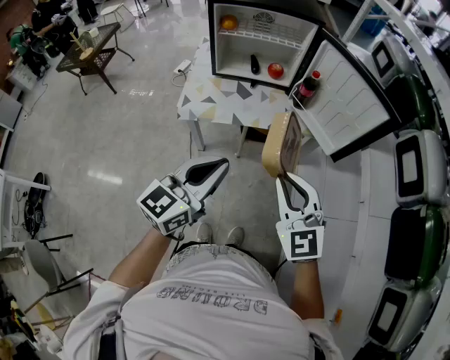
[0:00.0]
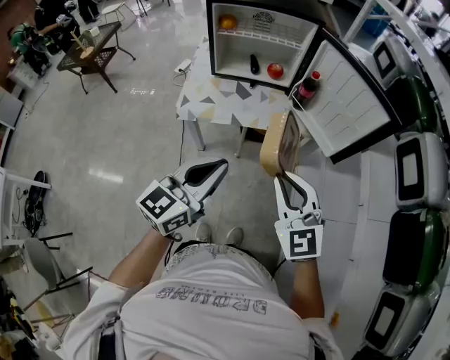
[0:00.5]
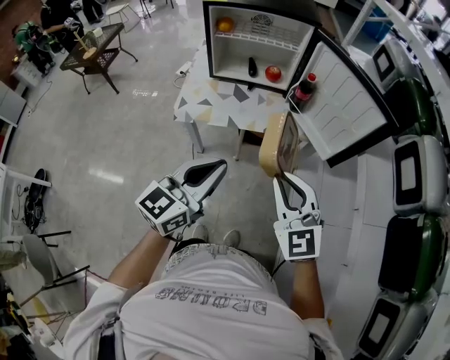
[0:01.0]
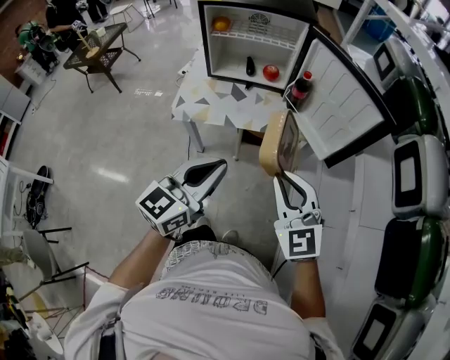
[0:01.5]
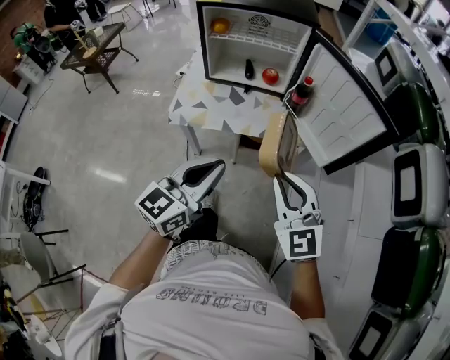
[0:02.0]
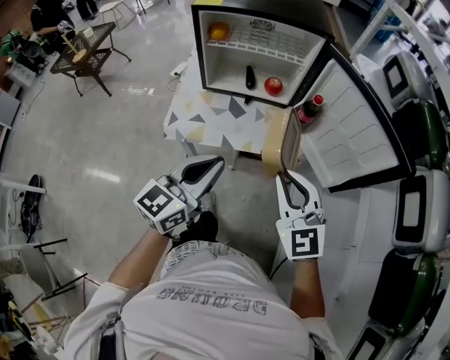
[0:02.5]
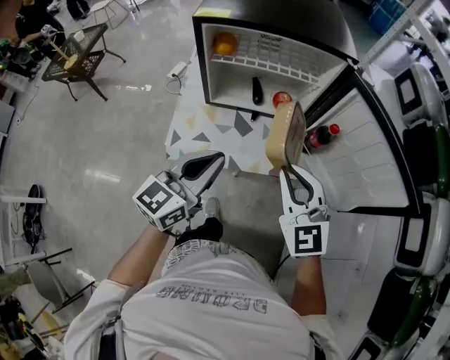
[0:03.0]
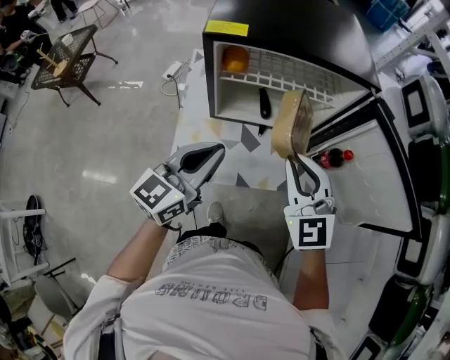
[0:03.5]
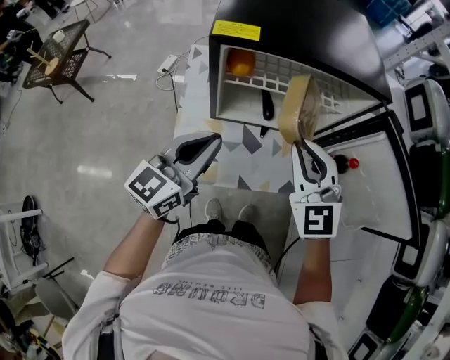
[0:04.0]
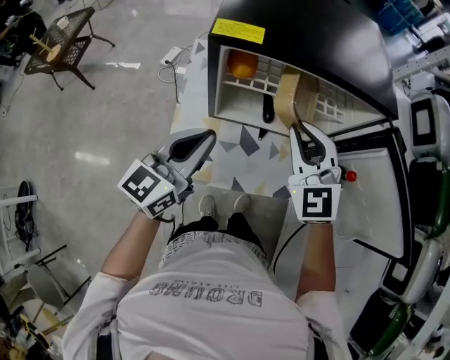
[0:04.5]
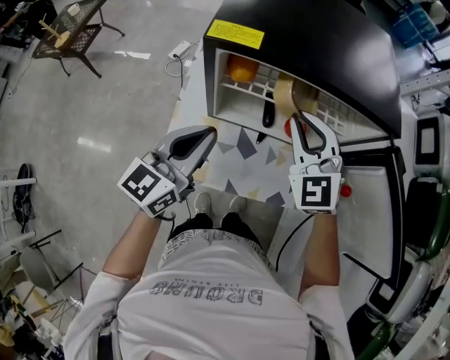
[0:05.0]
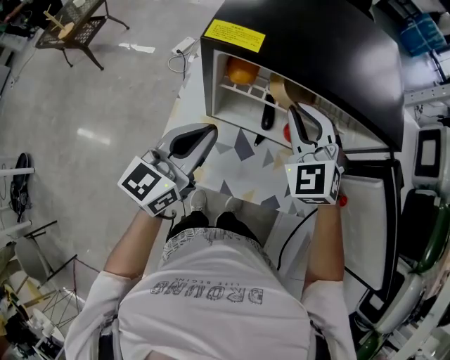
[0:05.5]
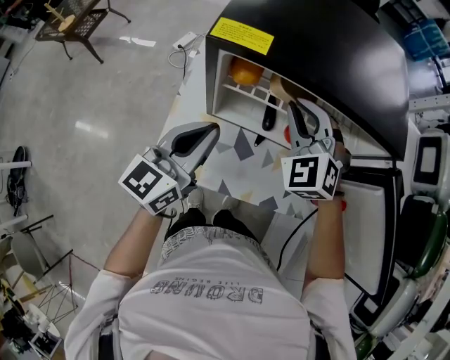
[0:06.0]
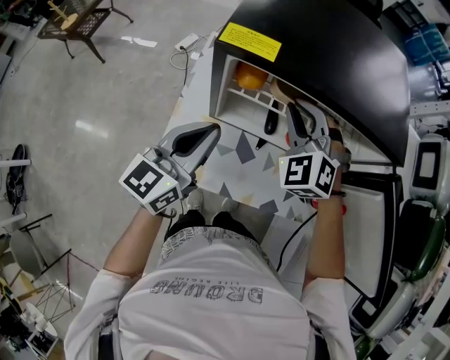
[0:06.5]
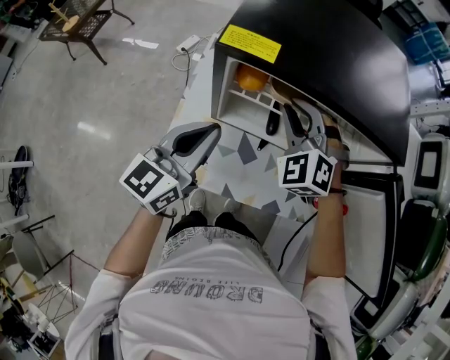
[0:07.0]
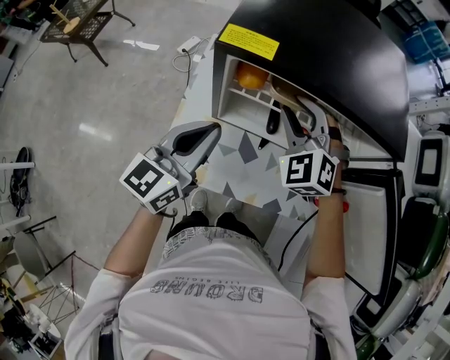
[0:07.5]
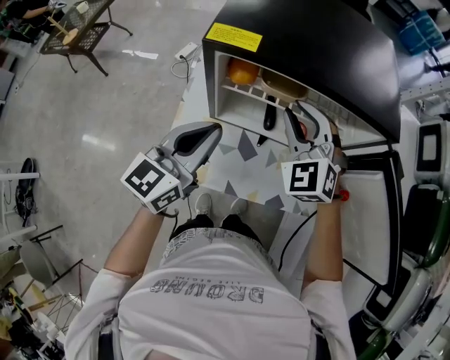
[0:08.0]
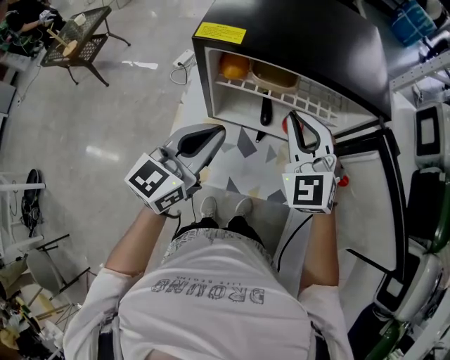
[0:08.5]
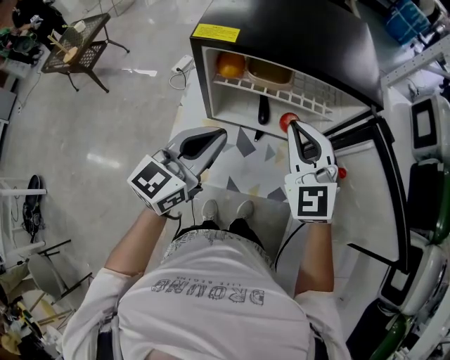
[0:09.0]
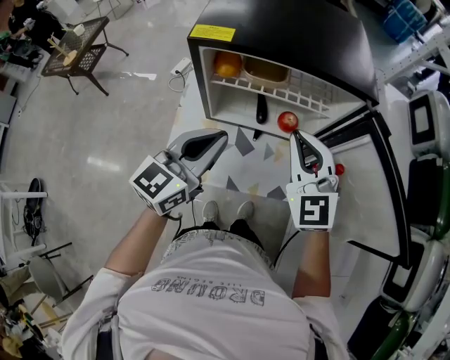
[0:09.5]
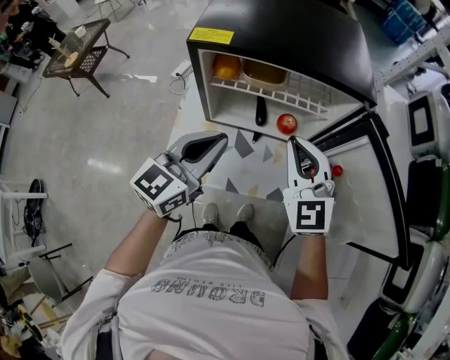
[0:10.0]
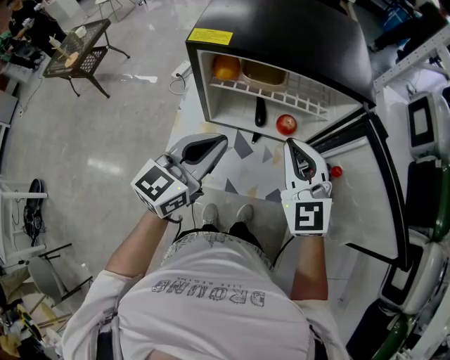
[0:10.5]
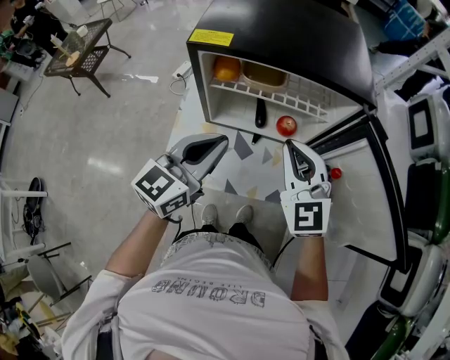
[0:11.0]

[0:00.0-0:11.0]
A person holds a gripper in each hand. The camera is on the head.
0:00.0 to 0:02.0: The right gripper heads forward, covering some 5 cm. The left gripper moves approximately 5 cm.
0:02.0 to 0:03.5: The grippers both shift forward and to the left by approximately 35 cm.
0:03.5 to 0:05.5: The right gripper heads forward, covering about 20 cm, and rotates about 20 degrees. The left gripper goes approximately 10 cm forward.
0:05.5 to 0:07.5: The right gripper opens its fingers.
0:07.5 to 0:09.0: The right gripper heads backward, to the right and upward, covering some 15 cm, swivels about 30 degrees, and closes up, while the left gripper moves to the right and backward, roughly 10 cm.
0:09.0 to 0:11.0: The grippers stay close to where they were, moving slightly.

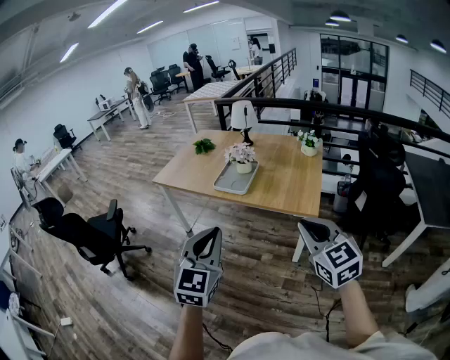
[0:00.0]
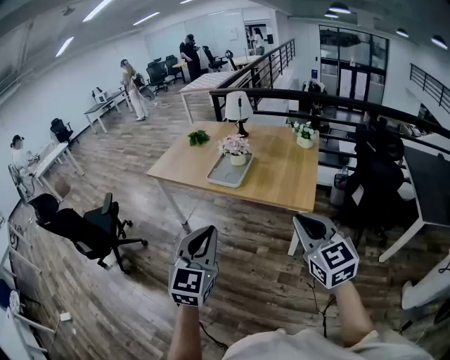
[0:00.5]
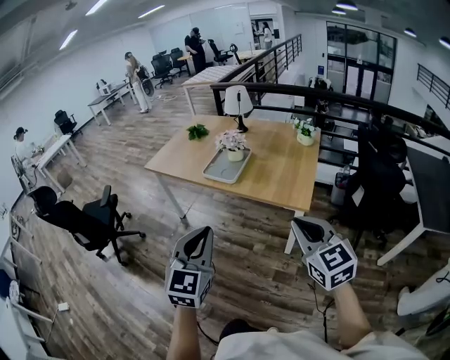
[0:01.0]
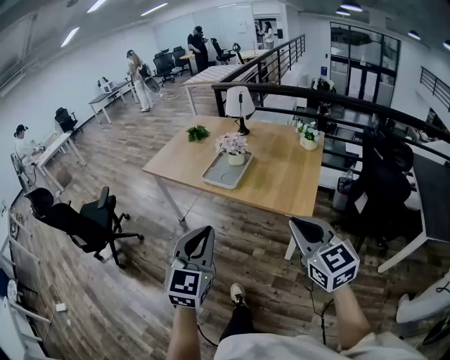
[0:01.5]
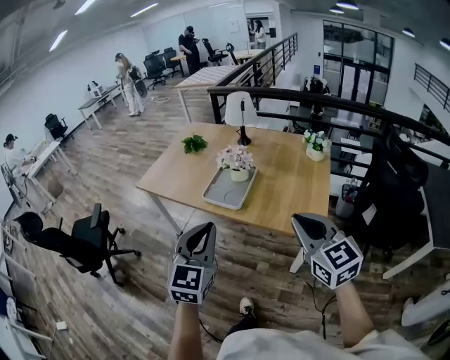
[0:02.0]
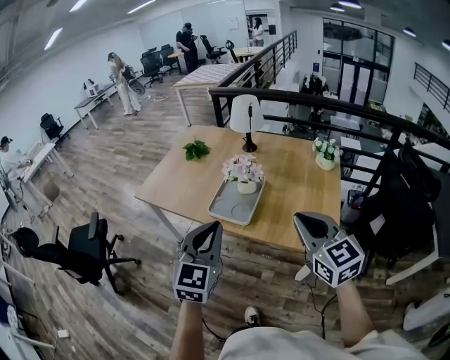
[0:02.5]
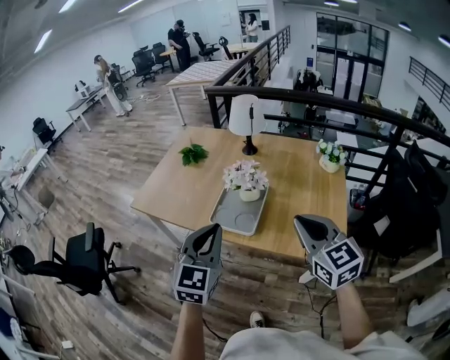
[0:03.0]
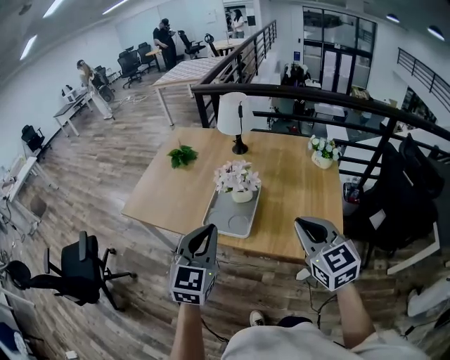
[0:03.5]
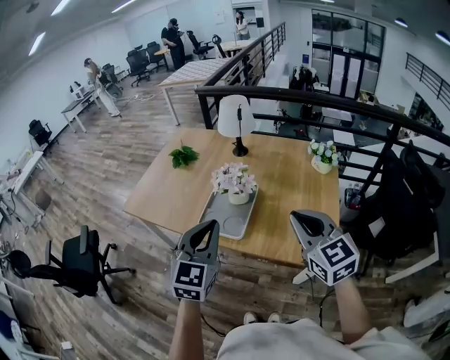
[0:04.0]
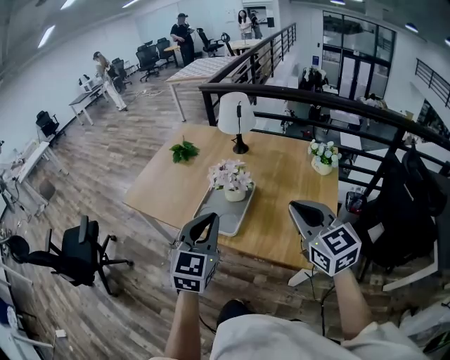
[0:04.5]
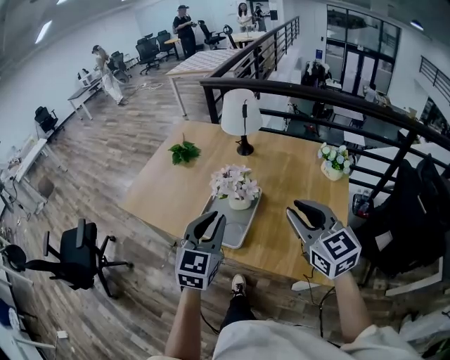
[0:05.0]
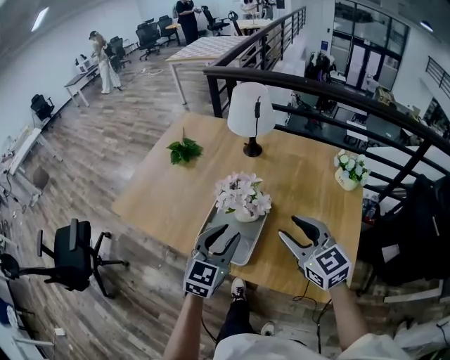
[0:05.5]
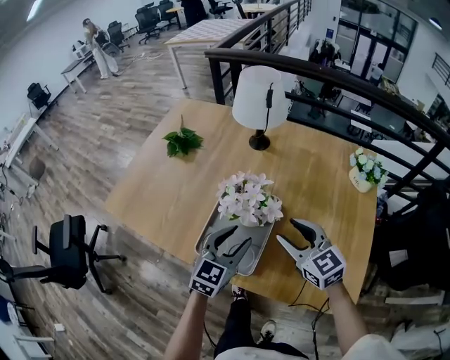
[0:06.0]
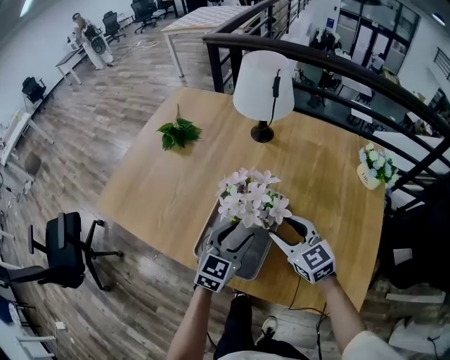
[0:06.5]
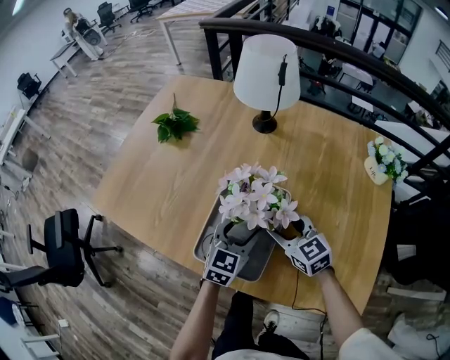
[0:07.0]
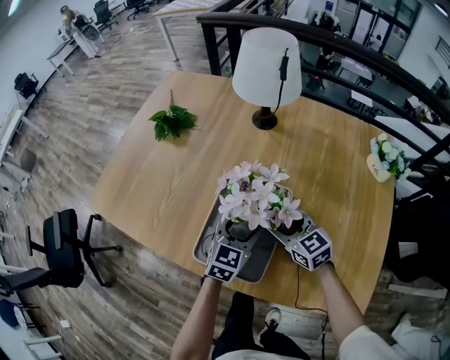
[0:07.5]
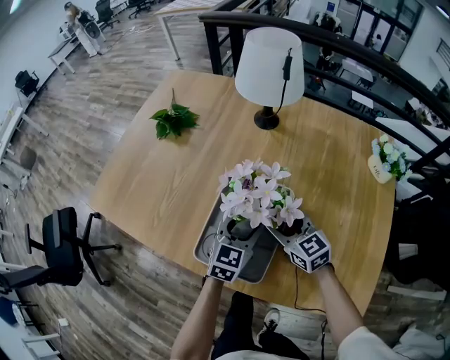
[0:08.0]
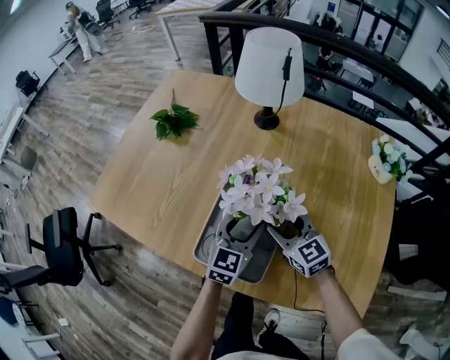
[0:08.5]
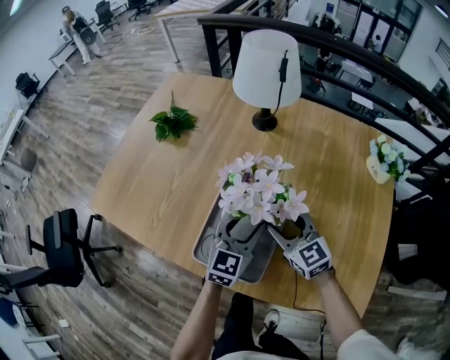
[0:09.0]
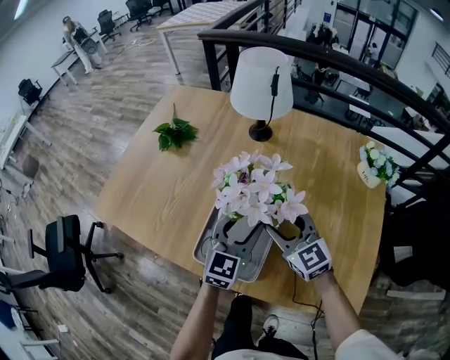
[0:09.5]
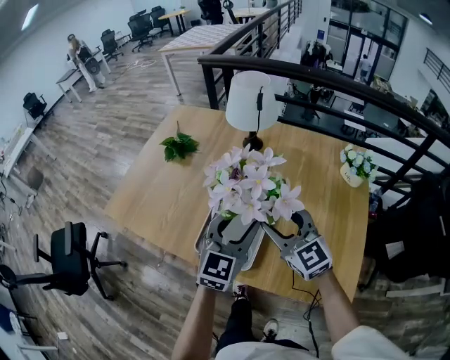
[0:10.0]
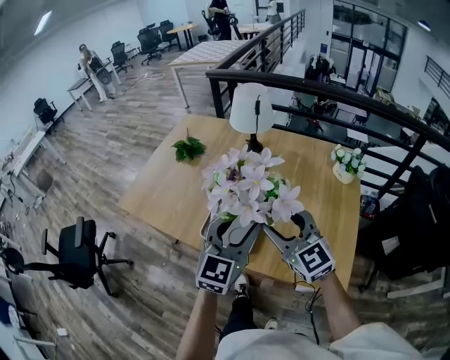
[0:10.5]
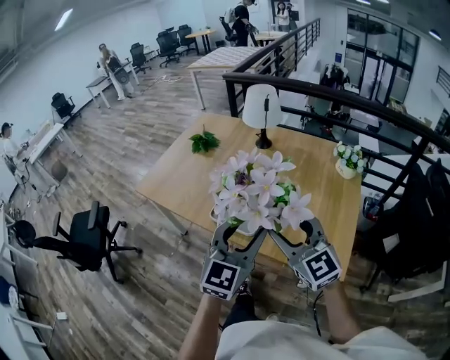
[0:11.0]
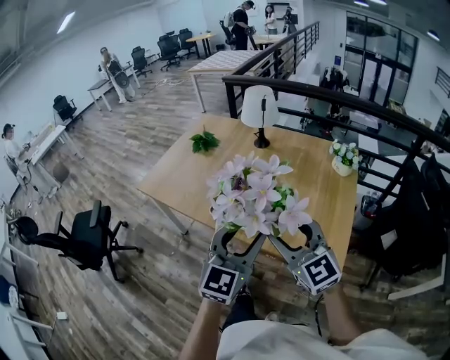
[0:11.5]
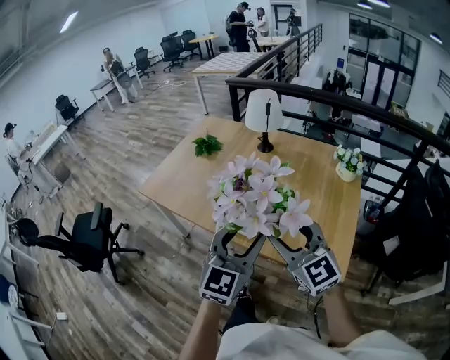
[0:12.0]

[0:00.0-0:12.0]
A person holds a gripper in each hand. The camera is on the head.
0:00.0 to 0:02.0: Both grippers travel together forward, roughly 20 cm.
0:02.0 to 0:04.0: Both grippers move forward, about 20 cm.
0:04.0 to 0:06.0: The left gripper is displaced downward and forward by approximately 30 cm, and opens up. The right gripper heads forward and downward, covering approximately 30 cm, and opens up.
0:06.0 to 0:08.0: The two grippers go some 15 cm downward and forward.
0:08.0 to 0:10.0: Both grippers travel together upward, approximately 20 cm. The right gripper changes its angle by about 20 degrees.
0:10.0 to 0:12.0: The grippers both shift backward and upward by approximately 25 cm.

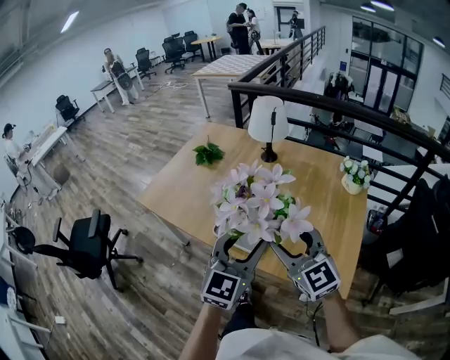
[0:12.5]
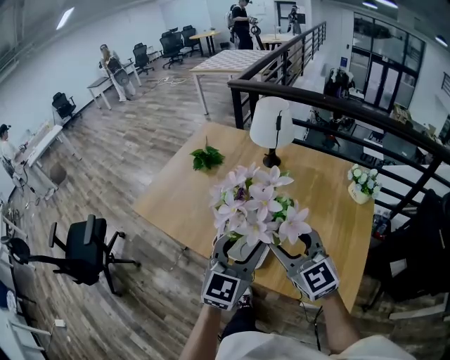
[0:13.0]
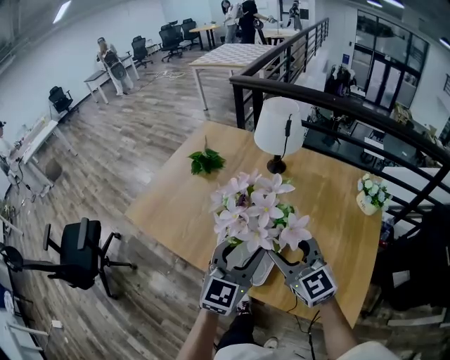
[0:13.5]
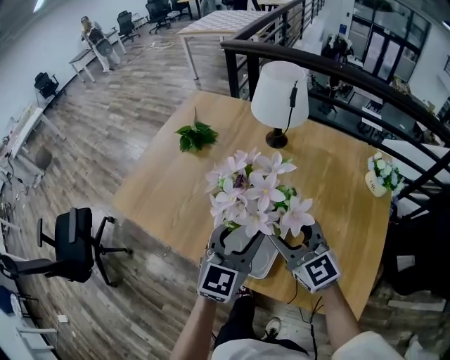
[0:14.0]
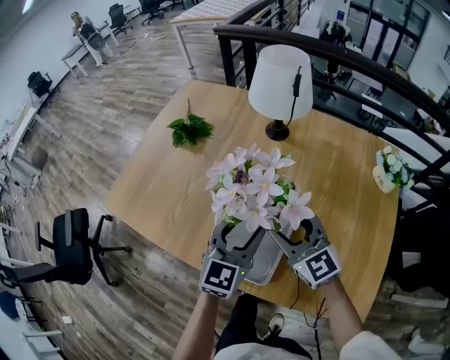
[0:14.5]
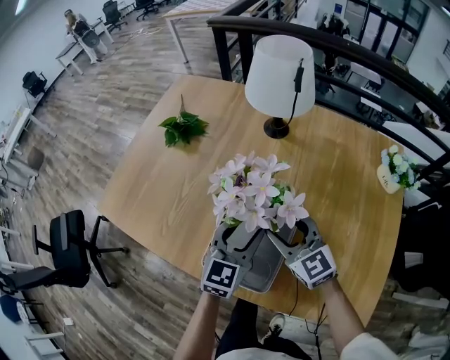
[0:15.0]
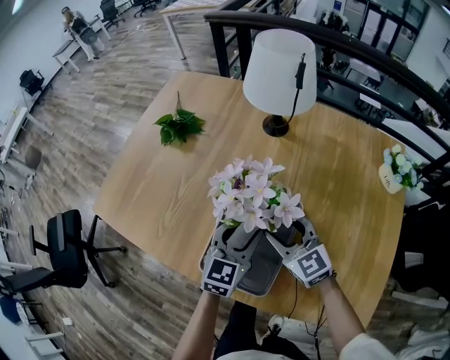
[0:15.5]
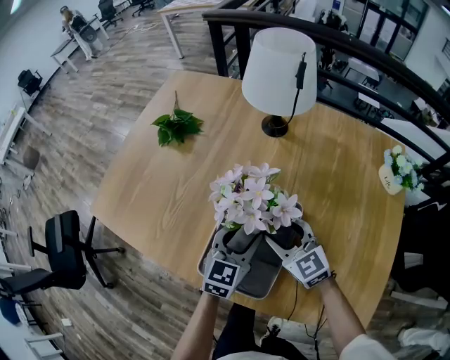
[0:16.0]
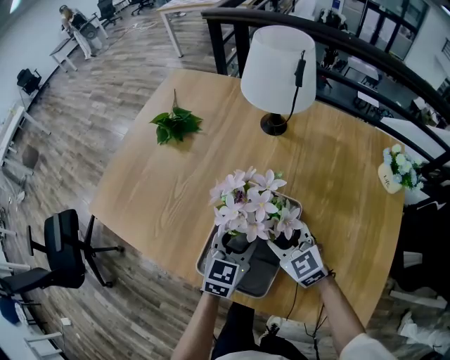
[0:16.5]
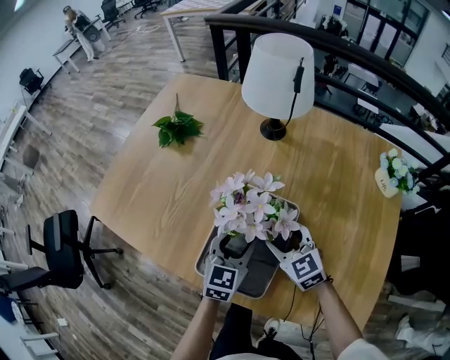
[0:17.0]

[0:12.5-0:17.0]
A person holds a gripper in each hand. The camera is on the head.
0:12.5 to 0:14.5: The two grippers go some 25 cm forward and downward.
0:14.5 to 0:17.0: Both grippers travel together downward, roughly 15 cm. The right gripper swivels approximately 20 degrees.
